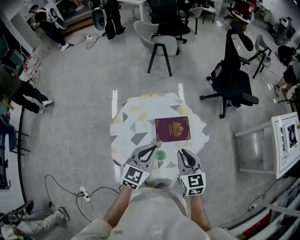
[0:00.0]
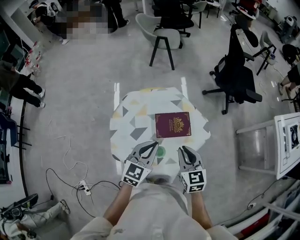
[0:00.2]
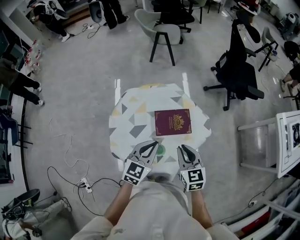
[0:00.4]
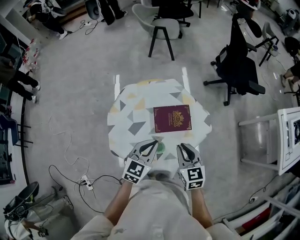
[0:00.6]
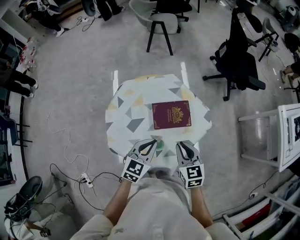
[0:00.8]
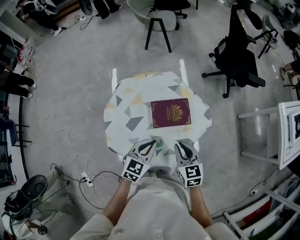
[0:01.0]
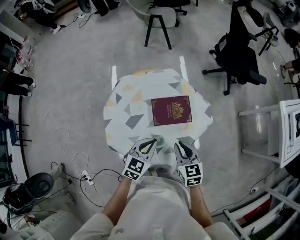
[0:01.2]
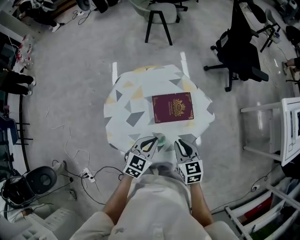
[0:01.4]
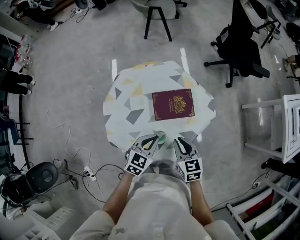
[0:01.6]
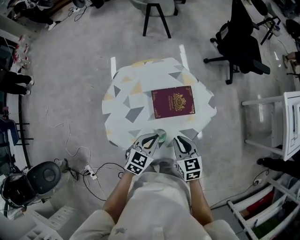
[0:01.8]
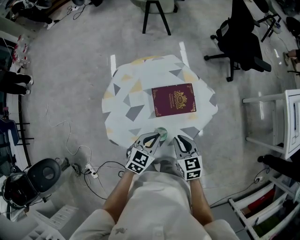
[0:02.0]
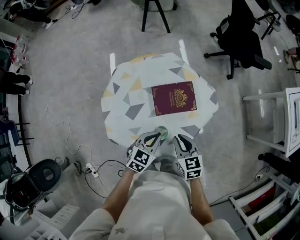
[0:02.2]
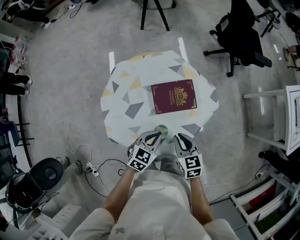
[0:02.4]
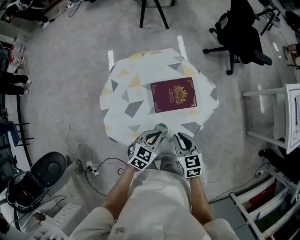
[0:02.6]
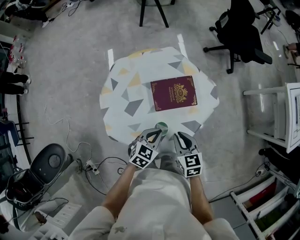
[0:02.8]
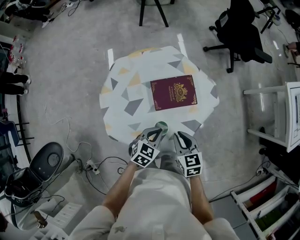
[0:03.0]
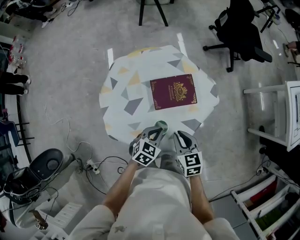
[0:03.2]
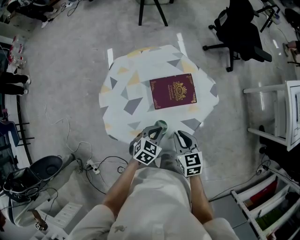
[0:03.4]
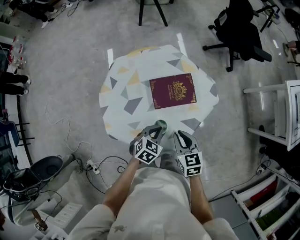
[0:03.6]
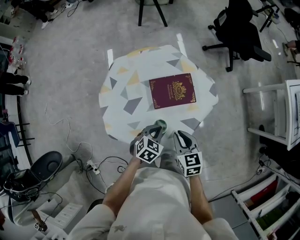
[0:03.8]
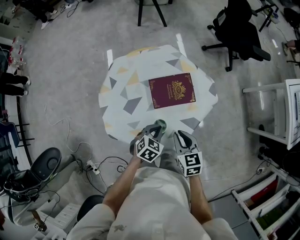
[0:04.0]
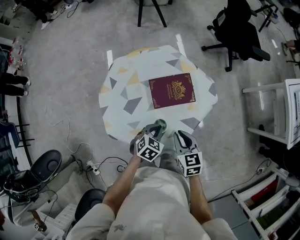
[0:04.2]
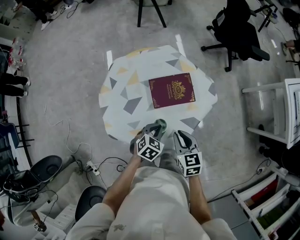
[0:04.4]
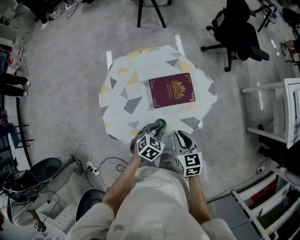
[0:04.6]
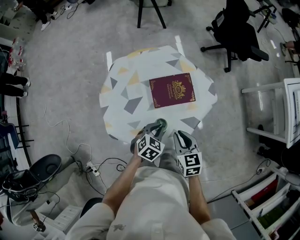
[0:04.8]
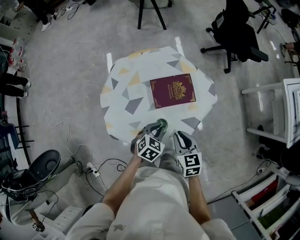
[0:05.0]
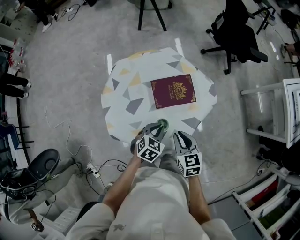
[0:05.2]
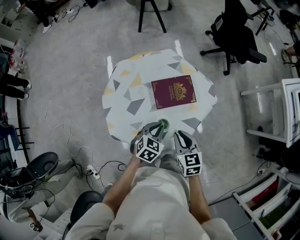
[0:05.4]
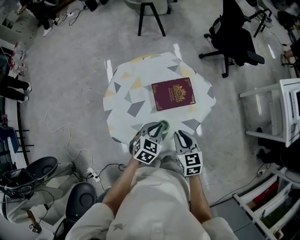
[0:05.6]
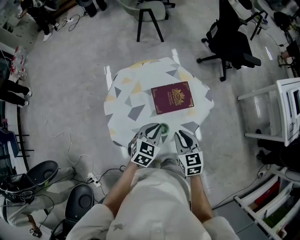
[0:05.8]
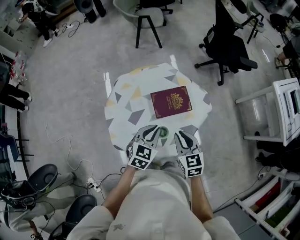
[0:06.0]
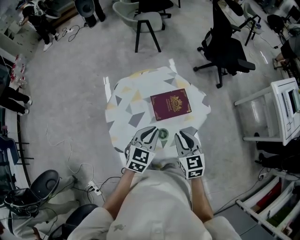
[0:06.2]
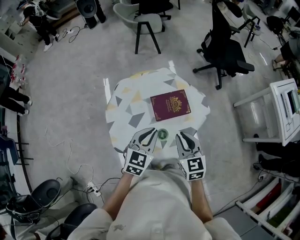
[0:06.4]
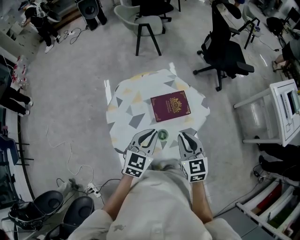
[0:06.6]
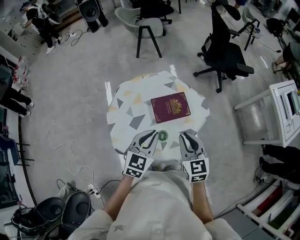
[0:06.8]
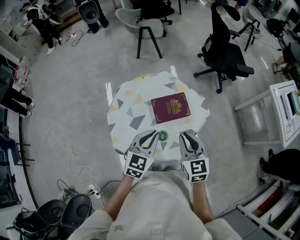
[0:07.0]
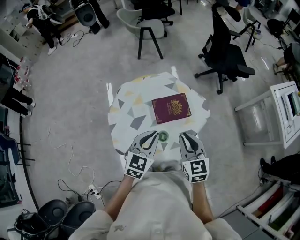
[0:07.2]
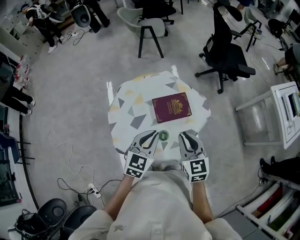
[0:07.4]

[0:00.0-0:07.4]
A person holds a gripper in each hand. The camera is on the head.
0:00.0 to 0:01.4: The two grippers go about 15 cm downward.
0:01.4 to 0:03.0: The left gripper is displaced downward by roughly 10 cm. The right gripper shifts by roughly 5 cm.
0:03.0 to 0:04.4: The grippers make only small movements.
0:04.4 to 0:06.0: The left gripper goes approximately 15 cm upward, and turns by roughly 20 degrees; the right gripper is displaced upward by roughly 5 cm.
0:06.0 to 0:07.4: The grippers both shift upward by roughly 10 cm.

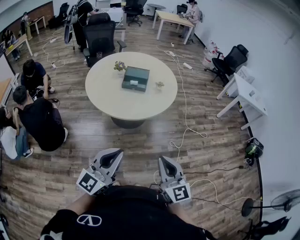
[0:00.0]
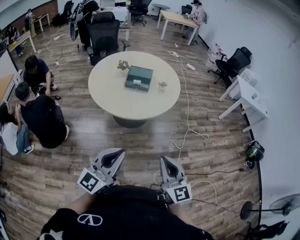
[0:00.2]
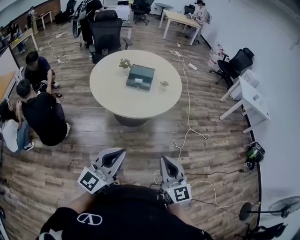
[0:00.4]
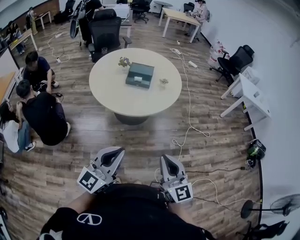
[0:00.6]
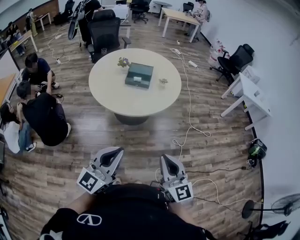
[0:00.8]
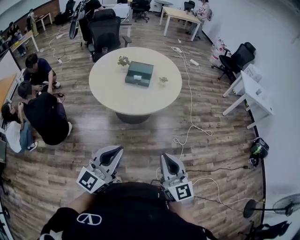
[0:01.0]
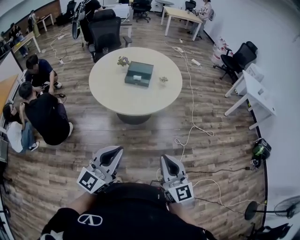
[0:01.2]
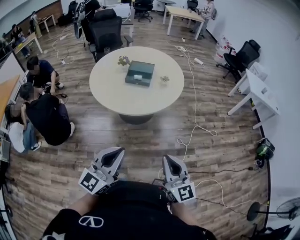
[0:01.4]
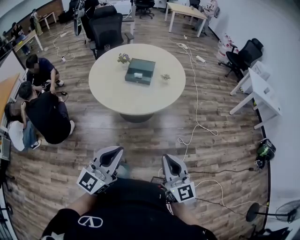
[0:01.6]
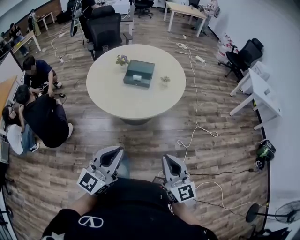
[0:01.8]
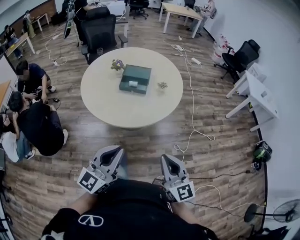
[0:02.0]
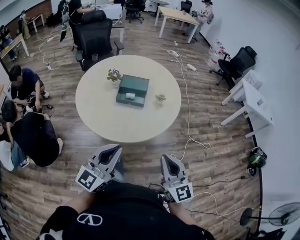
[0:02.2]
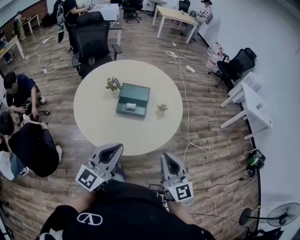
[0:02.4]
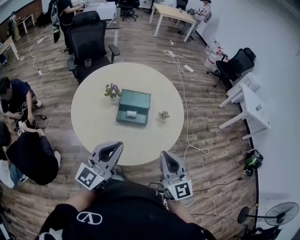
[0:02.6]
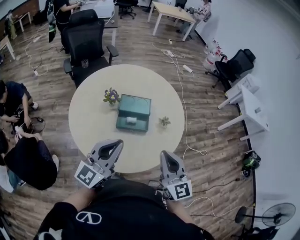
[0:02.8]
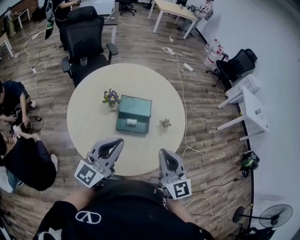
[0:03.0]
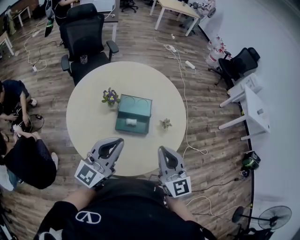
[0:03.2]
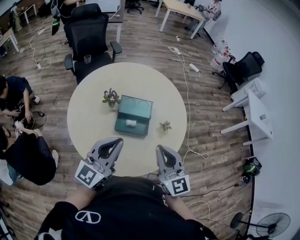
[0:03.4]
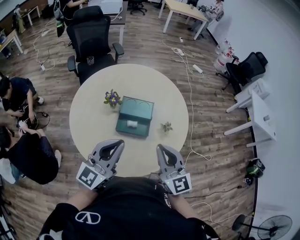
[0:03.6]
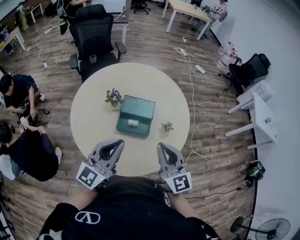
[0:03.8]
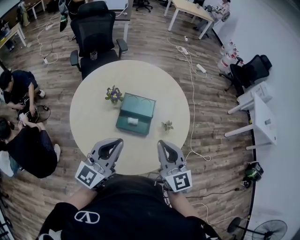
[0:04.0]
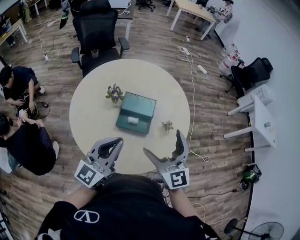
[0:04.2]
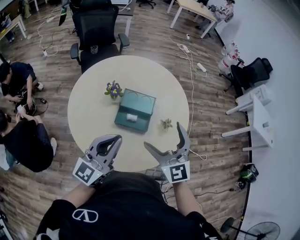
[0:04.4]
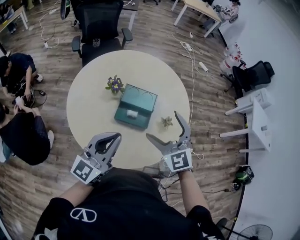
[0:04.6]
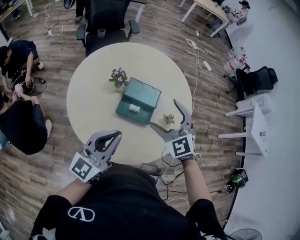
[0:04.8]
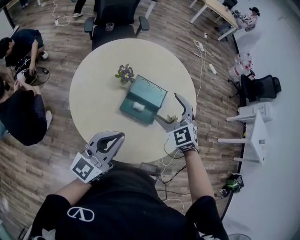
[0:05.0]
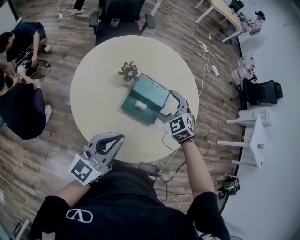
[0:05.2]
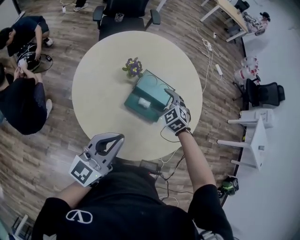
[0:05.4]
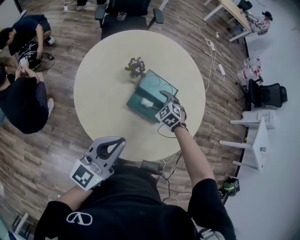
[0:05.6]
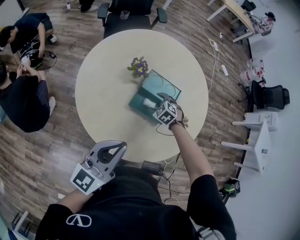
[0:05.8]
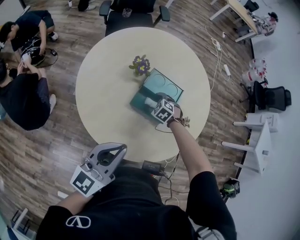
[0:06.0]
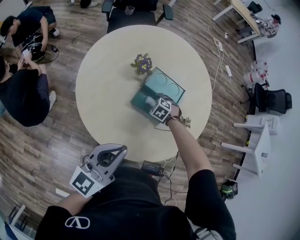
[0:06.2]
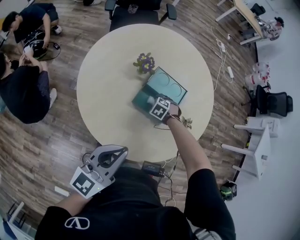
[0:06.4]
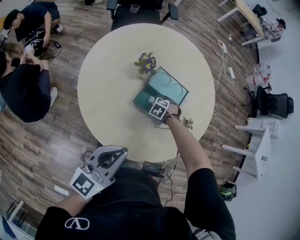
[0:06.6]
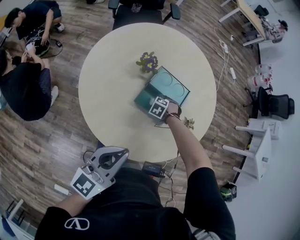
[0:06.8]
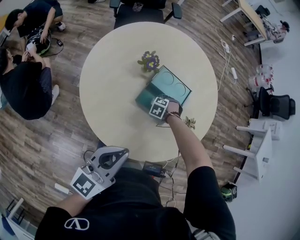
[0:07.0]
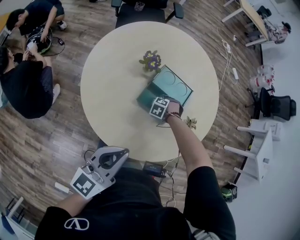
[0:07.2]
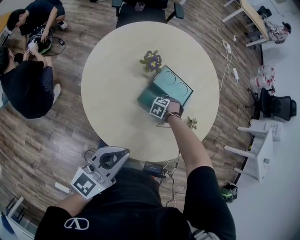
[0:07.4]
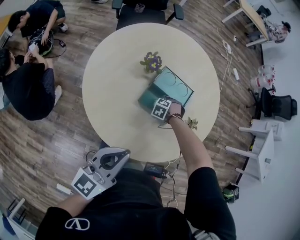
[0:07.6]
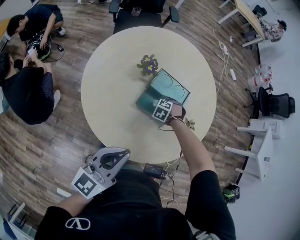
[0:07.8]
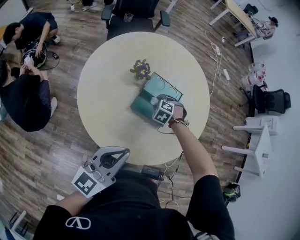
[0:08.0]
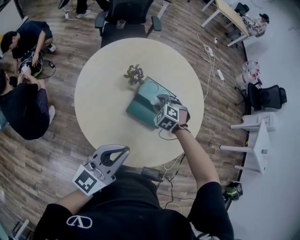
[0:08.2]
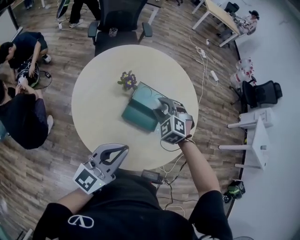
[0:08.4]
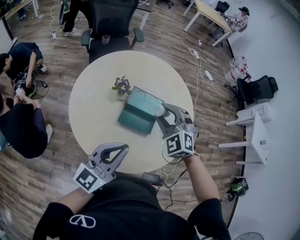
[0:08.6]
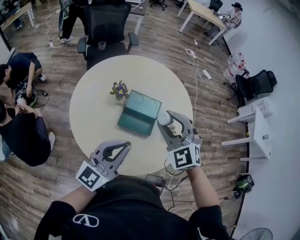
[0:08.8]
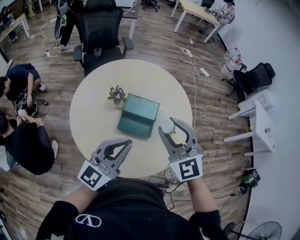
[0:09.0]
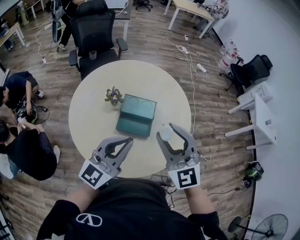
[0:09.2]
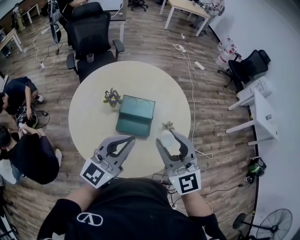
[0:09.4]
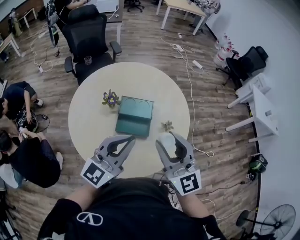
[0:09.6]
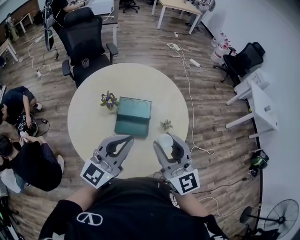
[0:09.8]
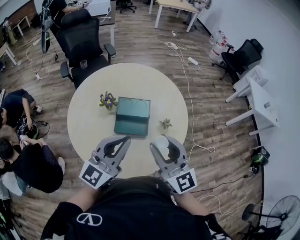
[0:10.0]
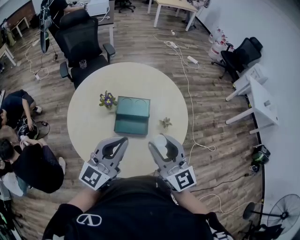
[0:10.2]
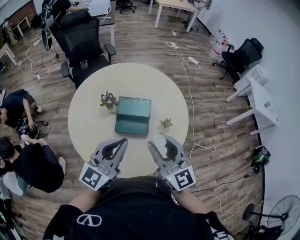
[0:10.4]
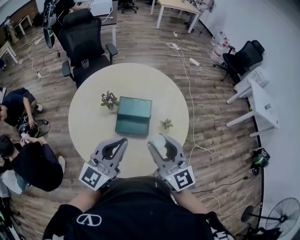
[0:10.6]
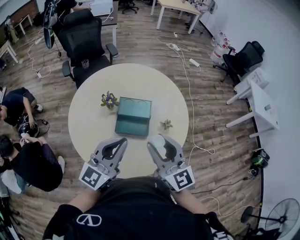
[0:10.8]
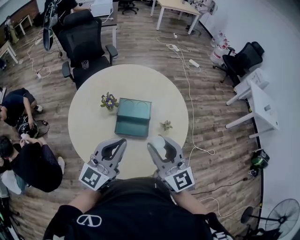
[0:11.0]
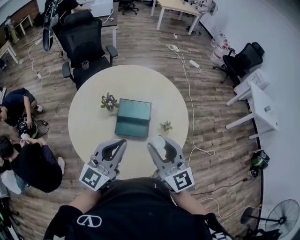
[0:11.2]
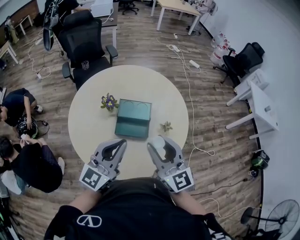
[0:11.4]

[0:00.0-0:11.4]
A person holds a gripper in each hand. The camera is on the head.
0:00.0 to 0:01.4: Both grippers travel together to the right, roughly 5 cm.
0:01.4 to 0:02.8: The two grippers travel together, forward, approximately 50 cm.
0:02.8 to 0:04.2: The right gripper shifts some 10 cm forward, and opens; the left gripper heads forward, covering approximately 5 cm.
0:04.2 to 0:05.6: The left gripper is displaced downward and to the left by roughly 10 cm; the right gripper is displaced downward and forward by roughly 35 cm, and angles its fingers downward, by roughly 60 degrees.
0:05.6 to 0:07.2: The right gripper is displaced downward by some 20 cm, swivels about 40 degrees, and closes. Meanwhile the left gripper shifts by roughly 5 cm.
0:07.2 to 0:08.6: The left gripper shifts approximately 10 cm upward; the right gripper is displaced upward by approximately 40 cm, and points its fingers approximately 50 degrees further upward.
0:08.6 to 0:10.0: The right gripper moves backward, upward and to the right, approximately 20 cm, and points its fingers approximately 40 degrees further upward; the left gripper moves upward and to the right, approximately 10 cm.
0:10.0 to 0:11.4: The grippers stay close to where they were, moving slightly.

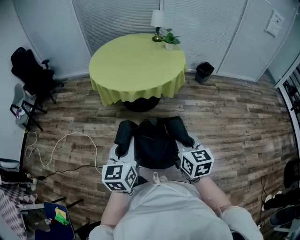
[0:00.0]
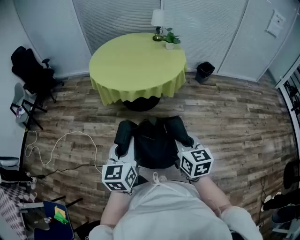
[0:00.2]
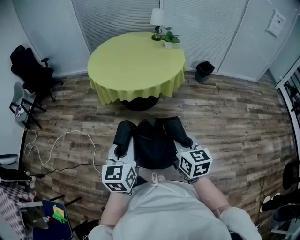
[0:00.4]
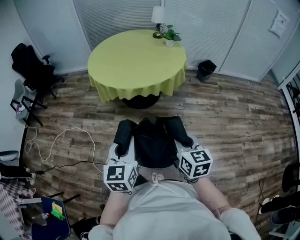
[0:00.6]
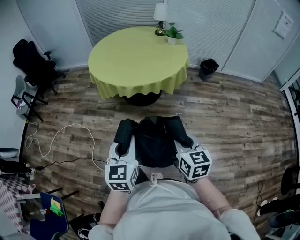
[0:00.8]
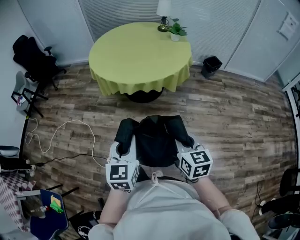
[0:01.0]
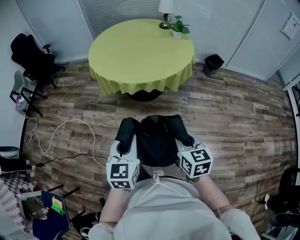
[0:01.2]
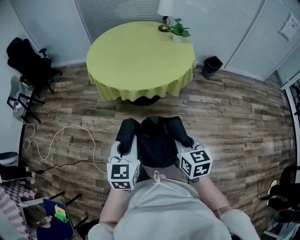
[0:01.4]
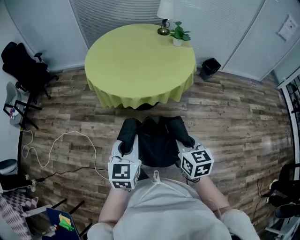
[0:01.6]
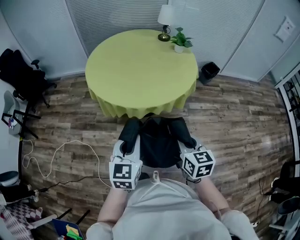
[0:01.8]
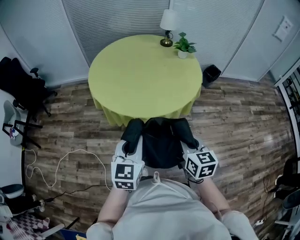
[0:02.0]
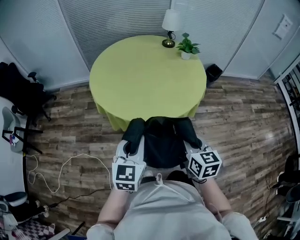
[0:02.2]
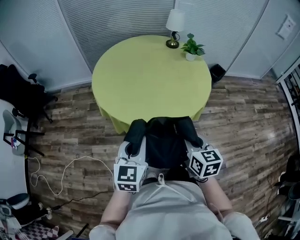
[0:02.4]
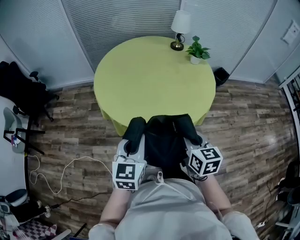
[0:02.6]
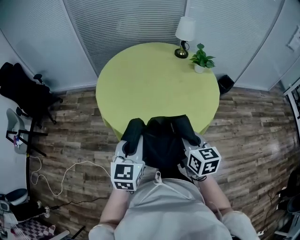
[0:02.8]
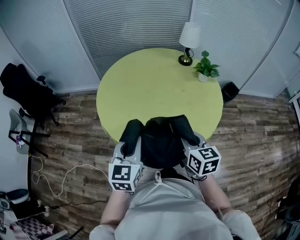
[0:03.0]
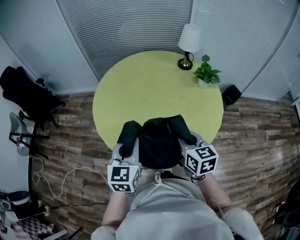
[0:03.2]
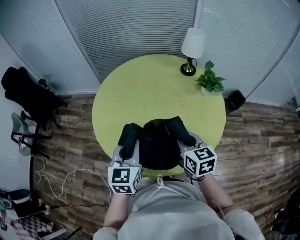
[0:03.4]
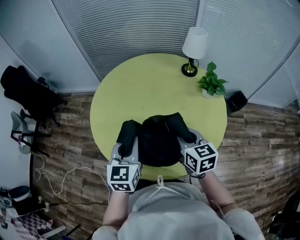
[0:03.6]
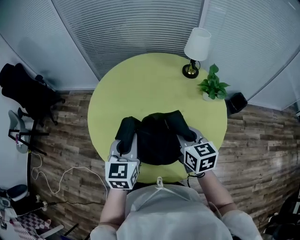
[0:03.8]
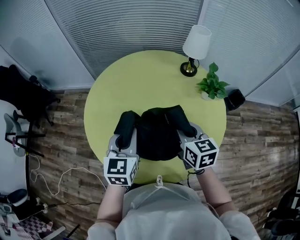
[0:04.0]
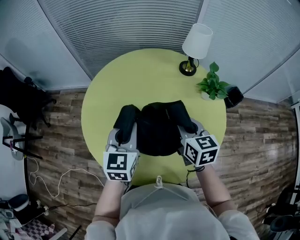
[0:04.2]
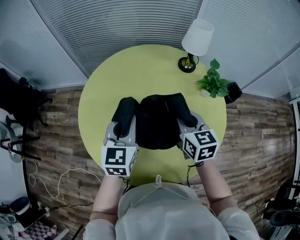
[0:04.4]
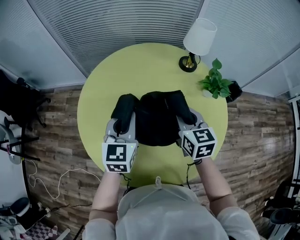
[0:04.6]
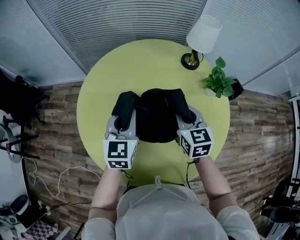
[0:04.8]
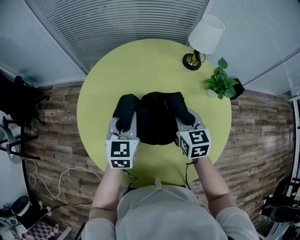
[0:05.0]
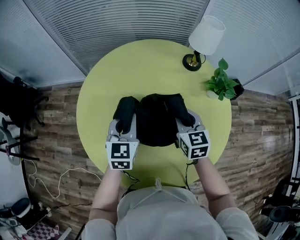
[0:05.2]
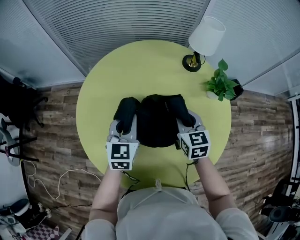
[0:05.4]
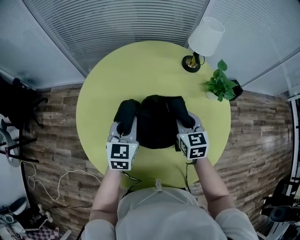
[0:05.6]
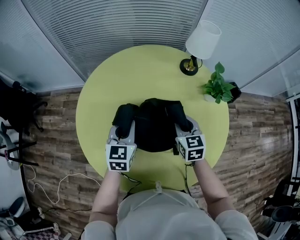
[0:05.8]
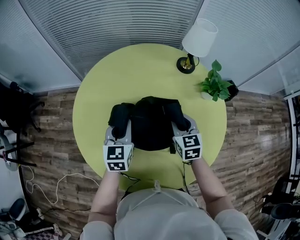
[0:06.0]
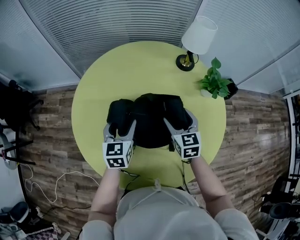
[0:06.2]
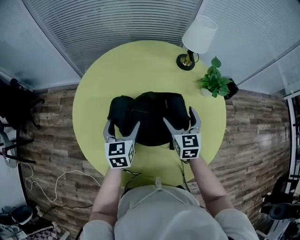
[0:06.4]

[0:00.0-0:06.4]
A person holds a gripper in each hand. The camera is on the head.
0:00.0 to 0:01.6: The two grippers go some 20 cm forward.
0:01.6 to 0:03.2: Both grippers are carried forward, some 50 cm.
0:03.2 to 0:04.8: Both grippers travel together forward, about 30 cm.
0:04.8 to 0:06.4: Both grippers move downward, about 10 cm. The right gripper opens; the left gripper opens.
